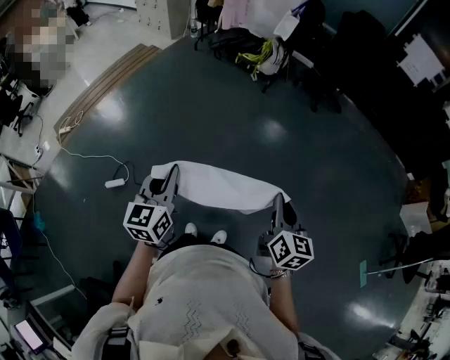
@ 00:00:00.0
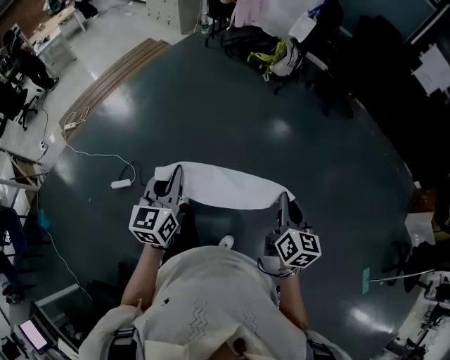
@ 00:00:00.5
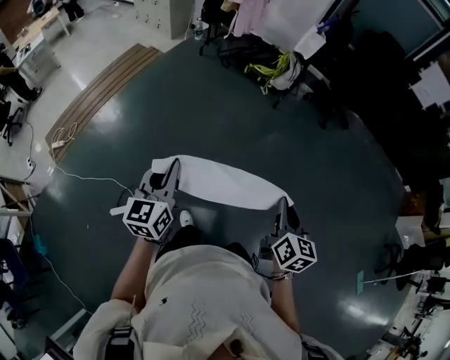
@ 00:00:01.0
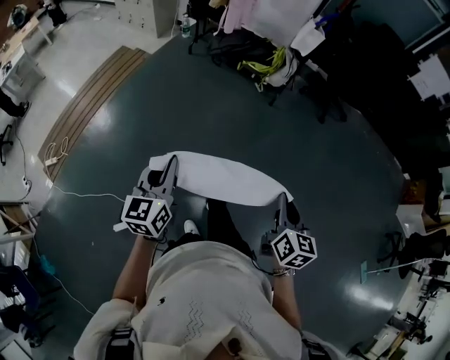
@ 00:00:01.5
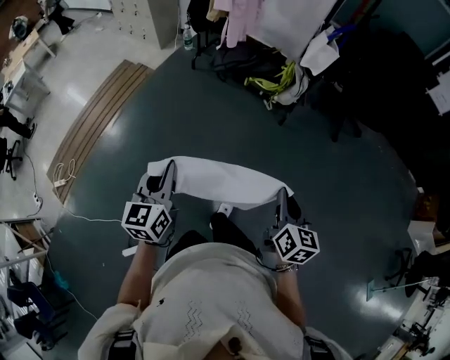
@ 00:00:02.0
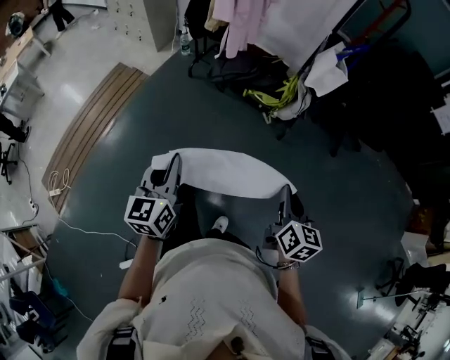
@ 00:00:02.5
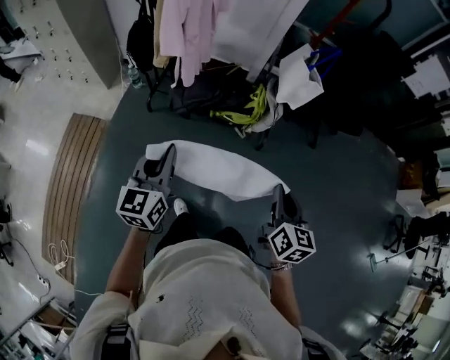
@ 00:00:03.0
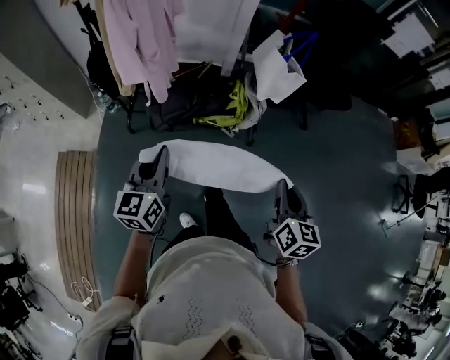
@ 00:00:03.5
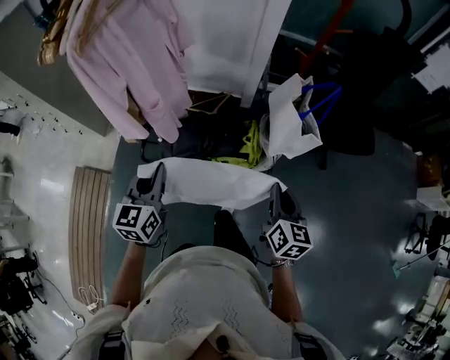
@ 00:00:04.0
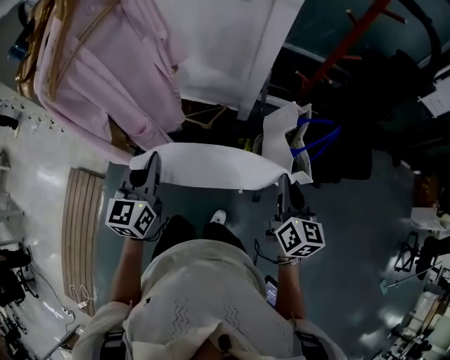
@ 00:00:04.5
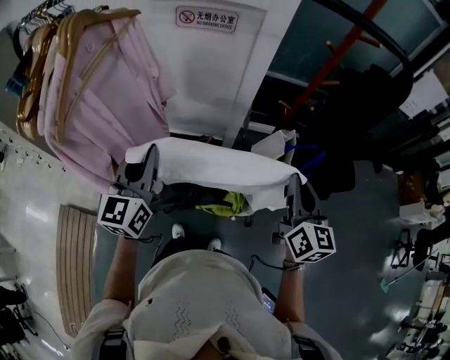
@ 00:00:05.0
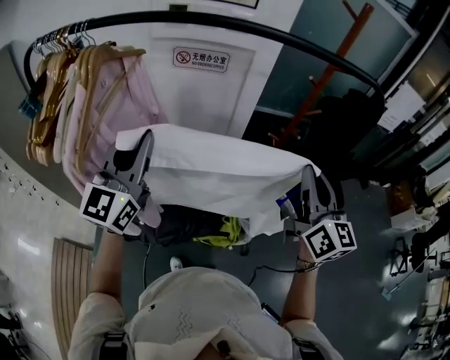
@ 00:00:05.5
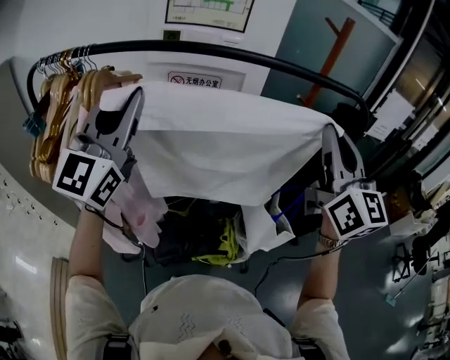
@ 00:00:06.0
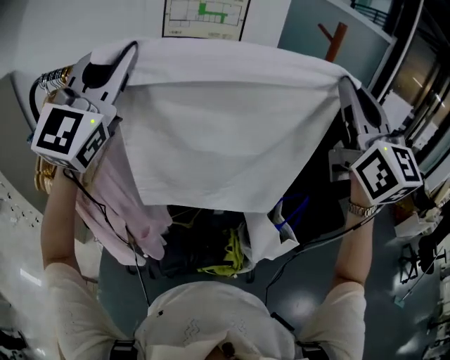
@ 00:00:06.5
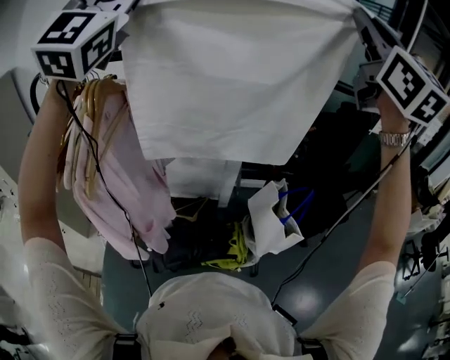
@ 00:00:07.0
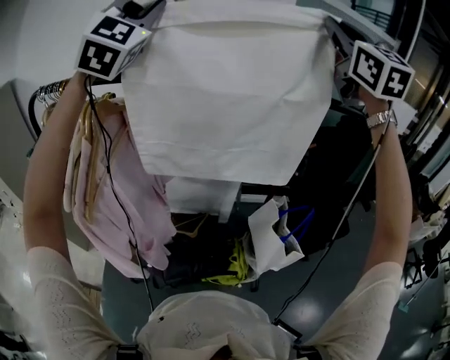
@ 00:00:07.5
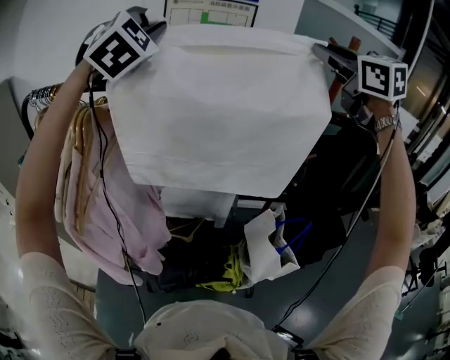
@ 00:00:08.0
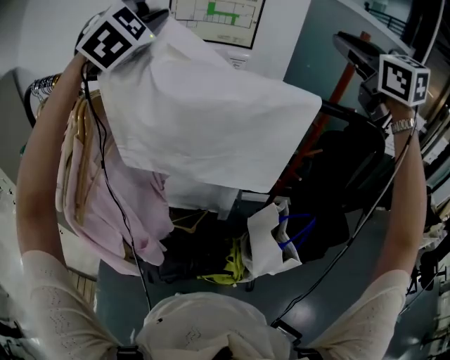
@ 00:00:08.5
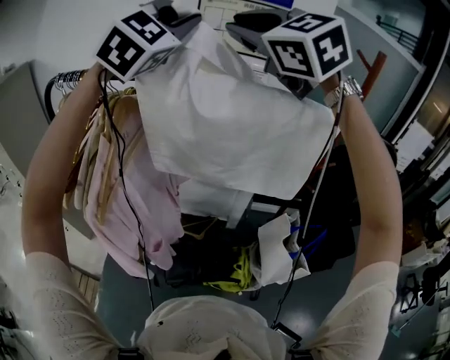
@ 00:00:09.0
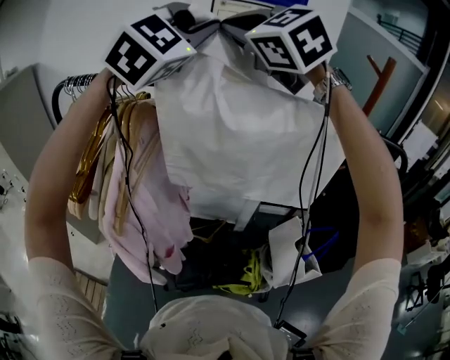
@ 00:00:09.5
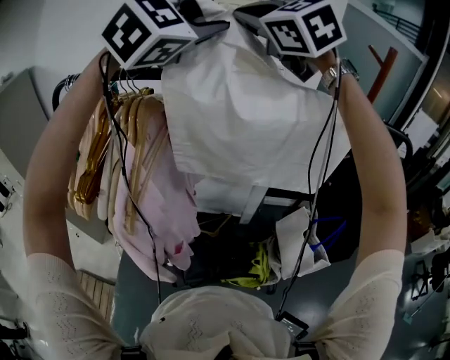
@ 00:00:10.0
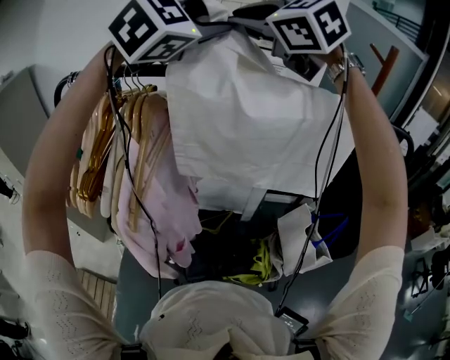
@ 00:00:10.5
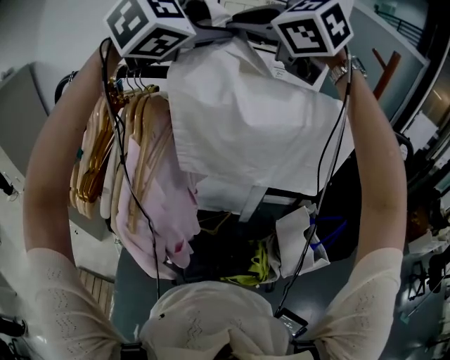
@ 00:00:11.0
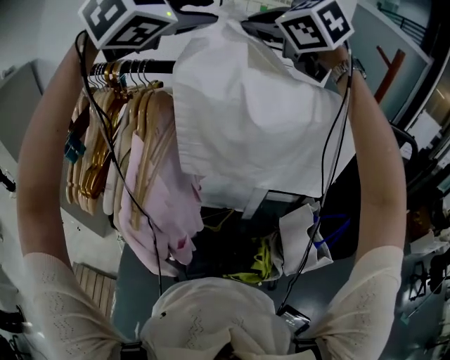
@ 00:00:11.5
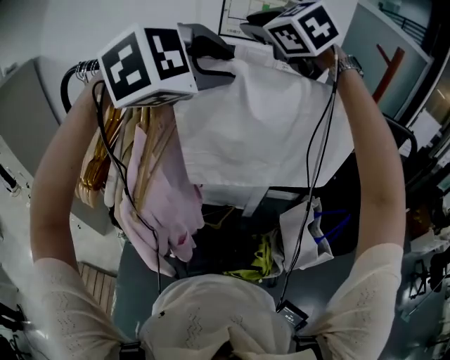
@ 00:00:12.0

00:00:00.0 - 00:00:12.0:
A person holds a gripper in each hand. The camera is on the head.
00:00:00.0 - 00:00:02.0: The pair of grippers is taken forward, some 70 cm.
00:00:02.0 - 00:00:04.0: The two grippers travel together, roughly 80 cm. The left gripper rotates roughly 20 degrees. Meanwhile the right gripper swivels some 20 degrees.
00:00:04.0 - 00:00:06.0: Both grippers move upward and forward, some 50 cm. The right gripper angles its fingers upward, by about 40 degrees. Meanwhile the left gripper points its fingers some 40 degrees further upward.
00:00:06.0 - 00:00:08.0: The two grippers go roughly 25 cm forward and upward. The left gripper rotates around the line of its fingers by roughly 50 degrees, clockwise from behind. Meanwhile the right gripper changes its angle by some 30 degrees.
00:00:08.0 - 00:00:10.0: The left gripper travels backward by roughly 5 cm, and swivels some 30 degrees, while the right gripper goes about 30 cm to the left, and swivels approximately 20 degrees.
00:00:10.0 - 00:00:12.0: The left gripper goes roughly 10 cm downward and backward. The right gripper goes some 5 cm downward.

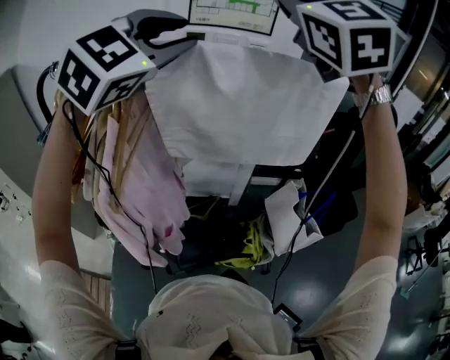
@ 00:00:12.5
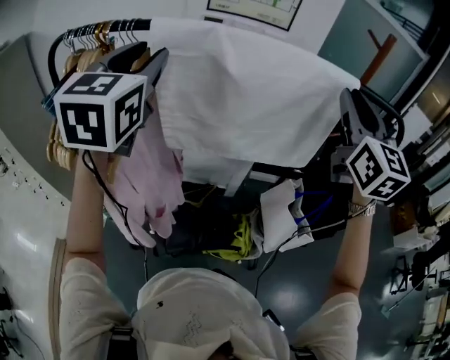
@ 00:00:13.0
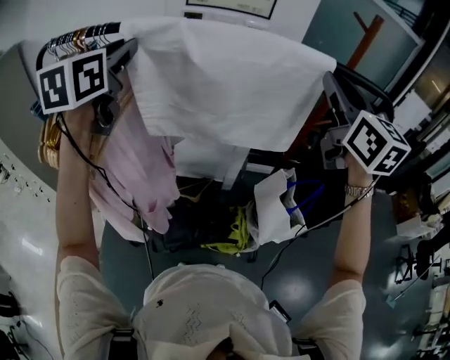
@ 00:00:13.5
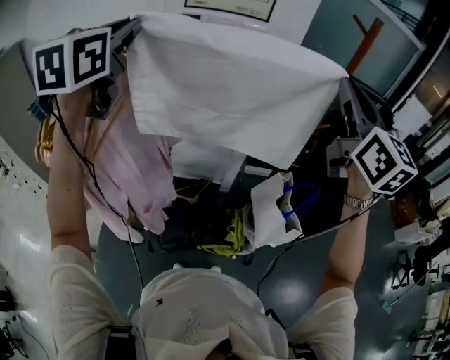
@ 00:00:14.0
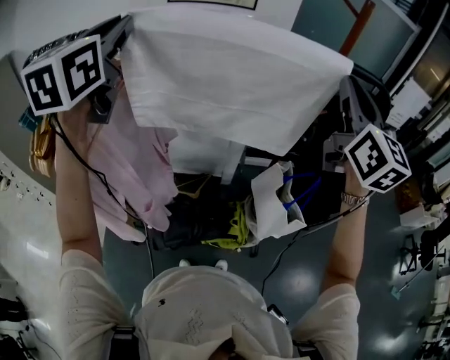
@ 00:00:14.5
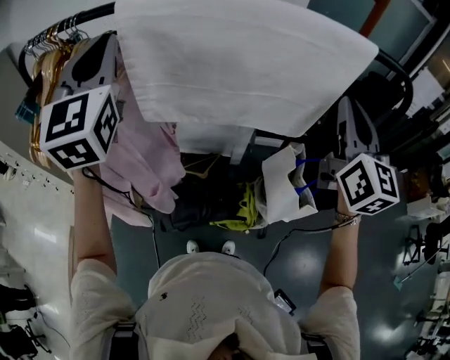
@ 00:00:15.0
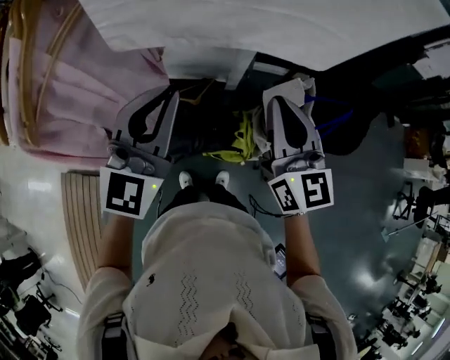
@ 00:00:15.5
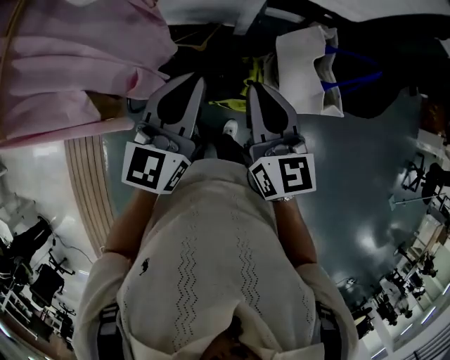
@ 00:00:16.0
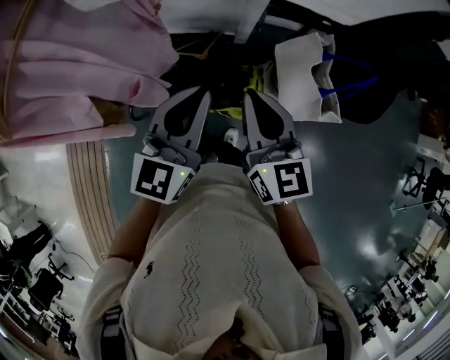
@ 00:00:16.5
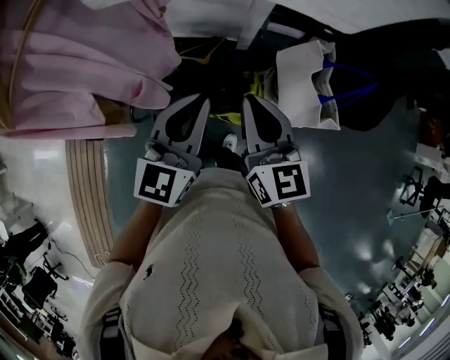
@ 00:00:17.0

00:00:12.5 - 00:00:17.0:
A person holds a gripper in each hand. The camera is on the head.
00:00:12.5 - 00:00:14.5: The left gripper moves some 5 cm downward and comes back, rotates some 50 degrees, and closes up. The right gripper moves to the right and downward, about 30 cm, and turns by about 40 degrees.
00:00:14.5 - 00:00:17.0: The two grippers go about 40 cm downward. The left gripper rotates approximately 20 degrees, while the right gripper turns by some 30 degrees.

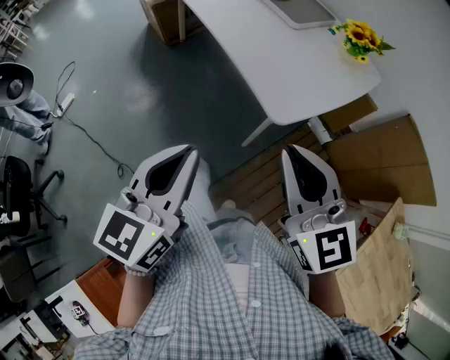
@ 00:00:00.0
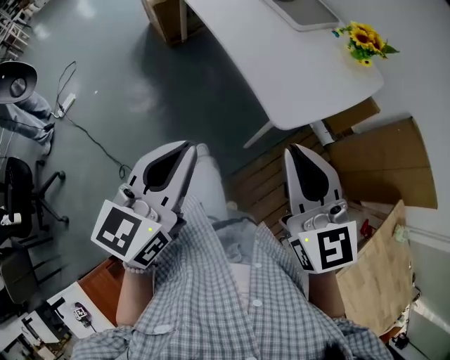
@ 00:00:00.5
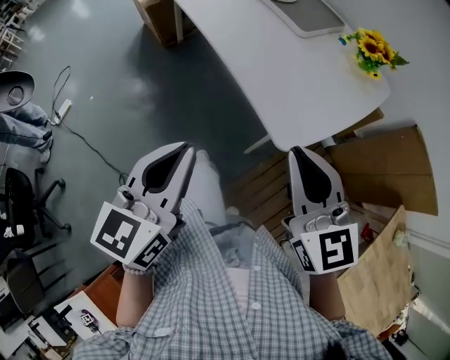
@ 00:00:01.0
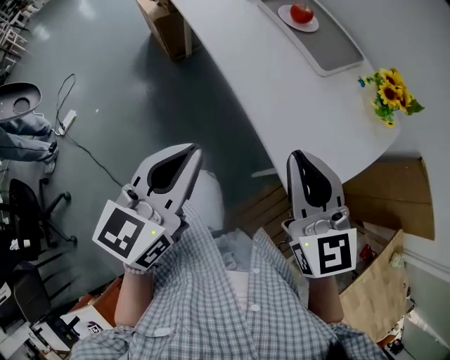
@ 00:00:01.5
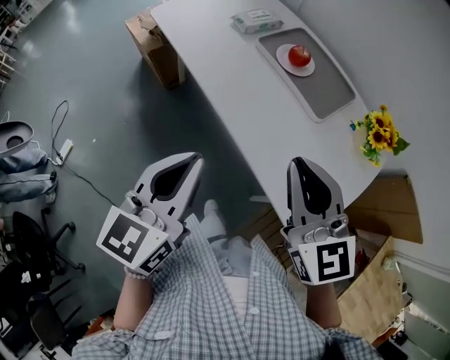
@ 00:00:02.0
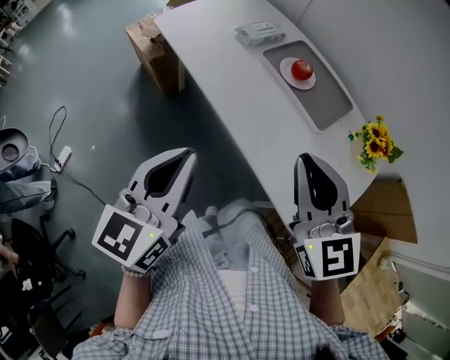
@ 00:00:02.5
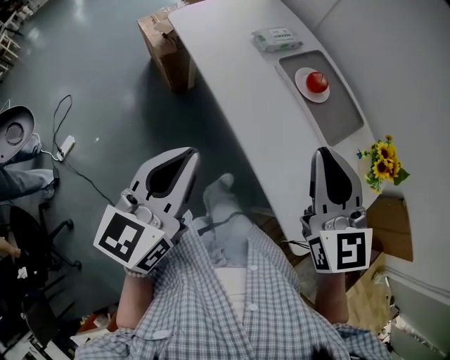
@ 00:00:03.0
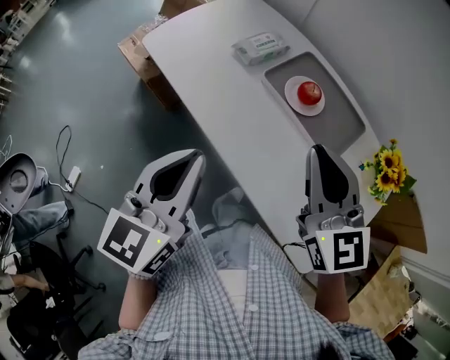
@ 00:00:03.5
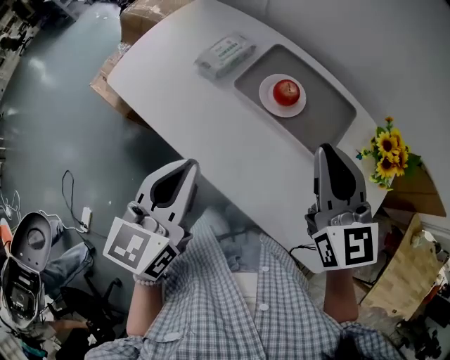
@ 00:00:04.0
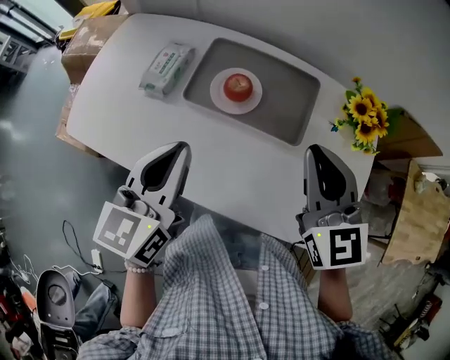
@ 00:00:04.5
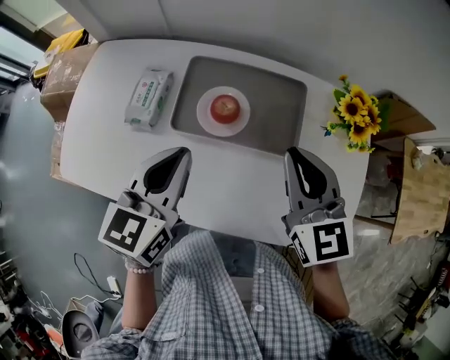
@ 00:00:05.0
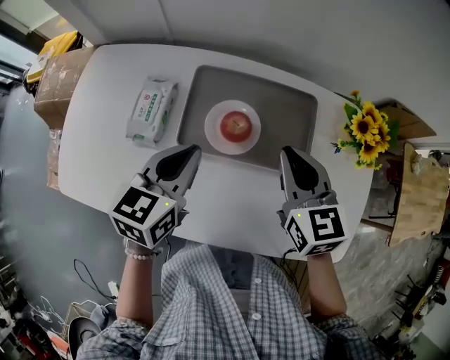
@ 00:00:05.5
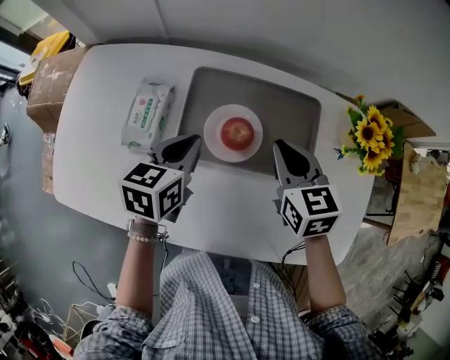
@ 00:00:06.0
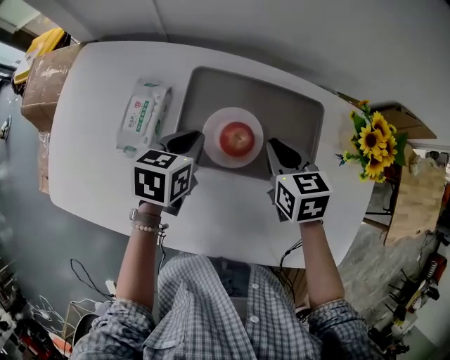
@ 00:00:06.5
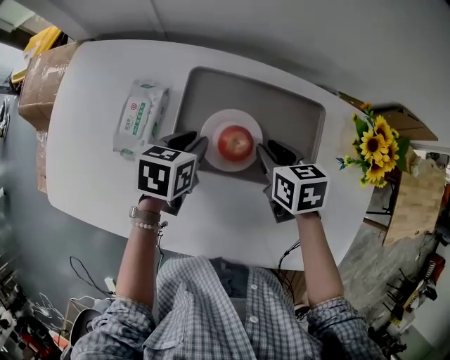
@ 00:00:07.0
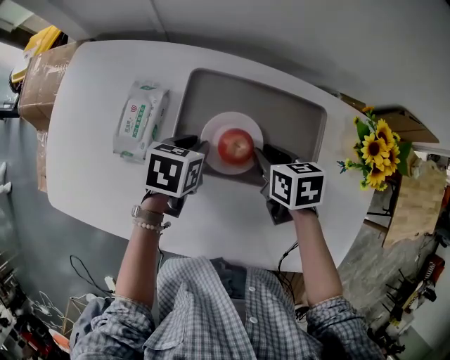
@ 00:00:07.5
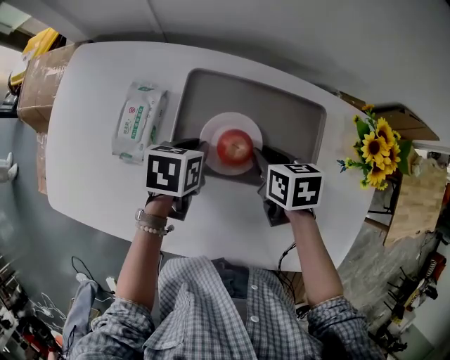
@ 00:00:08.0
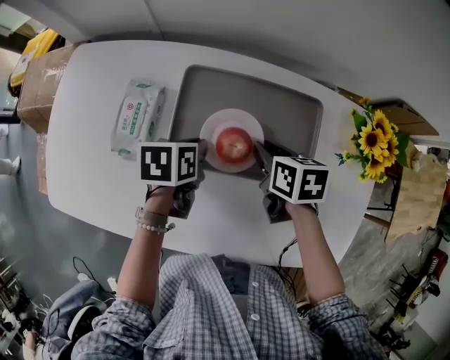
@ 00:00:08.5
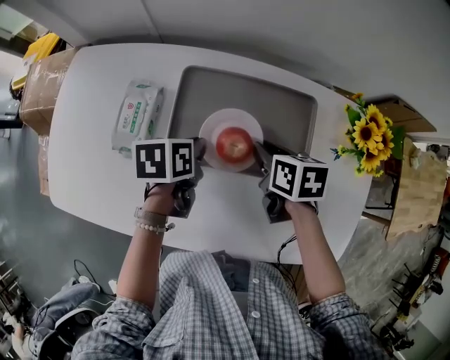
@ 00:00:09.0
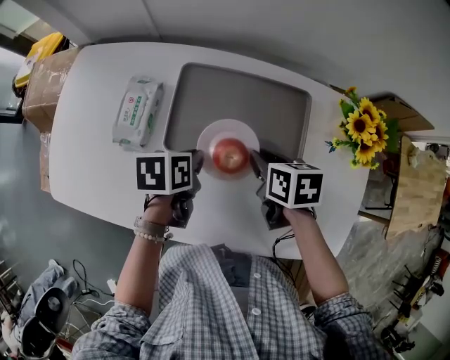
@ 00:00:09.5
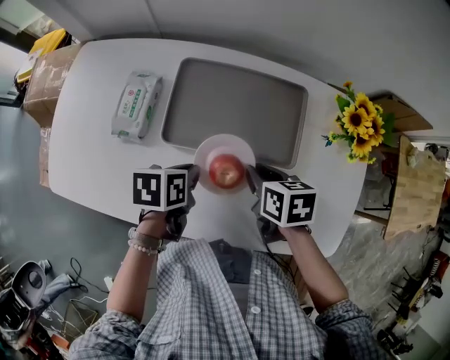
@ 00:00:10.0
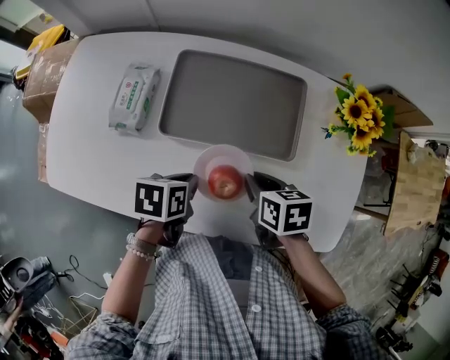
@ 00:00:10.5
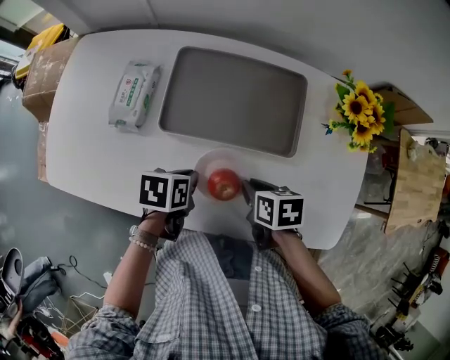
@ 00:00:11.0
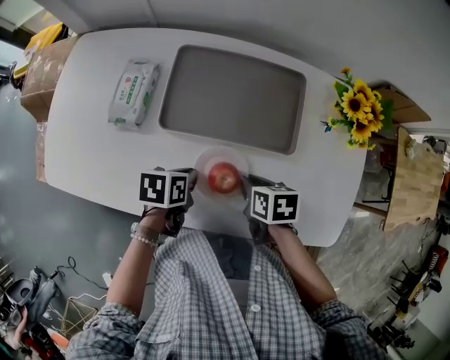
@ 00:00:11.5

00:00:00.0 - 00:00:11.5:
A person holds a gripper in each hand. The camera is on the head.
00:00:00.0 - 00:00:02.0: Both grippers travel together forward, approximately 30 cm.
00:00:02.0 - 00:00:04.0: The two grippers go about 25 cm forward. The right gripper swivels approximately 20 degrees.
00:00:04.0 - 00:00:06.0: The right gripper heads downward, covering approximately 15 cm, and changes its angle by approximately 30 degrees. Meanwhile the left gripper ends up roughly 35 cm from where it was, and rotates about 40 degrees.
00:00:06.0 - 00:00:07.5: The grippers both shift downward by about 10 cm. The right gripper swivels roughly 30 degrees; the left gripper turns by approximately 20 degrees.
00:00:07.5 - 00:00:09.5: The left gripper moves backward, approximately 5 cm. The right gripper changes place by some 5 cm.
00:00:09.5 - 00:00:11.5: The left gripper shifts some 10 cm backward. Meanwhile the right gripper goes approximately 15 cm backward and downward.
